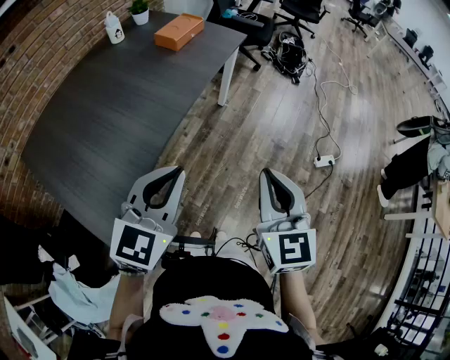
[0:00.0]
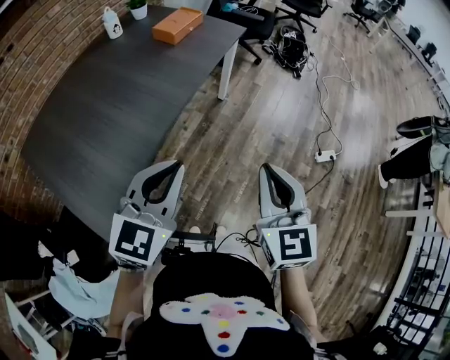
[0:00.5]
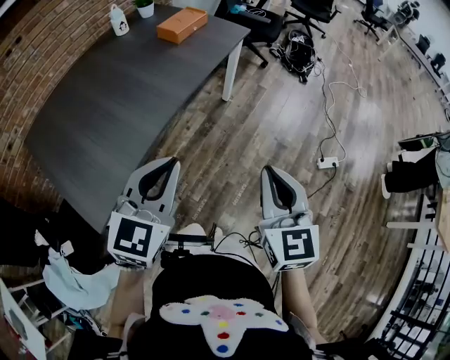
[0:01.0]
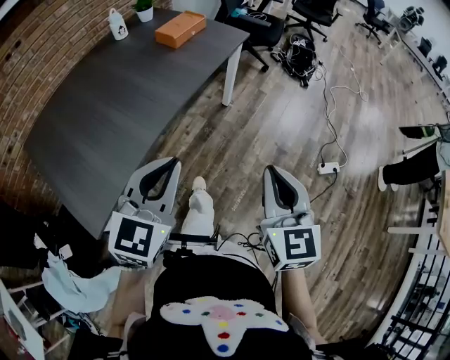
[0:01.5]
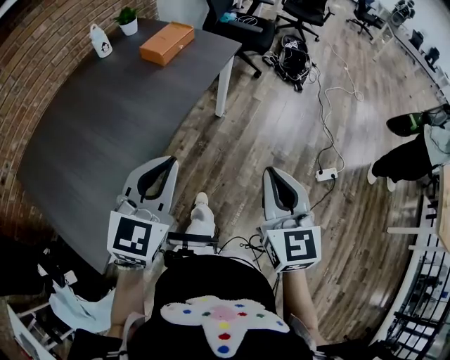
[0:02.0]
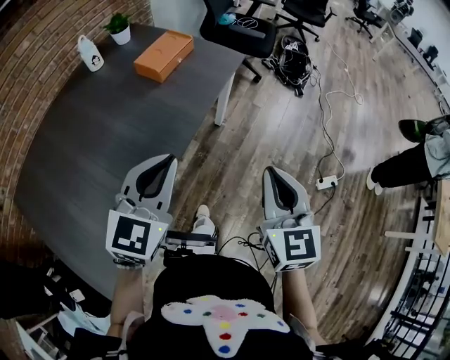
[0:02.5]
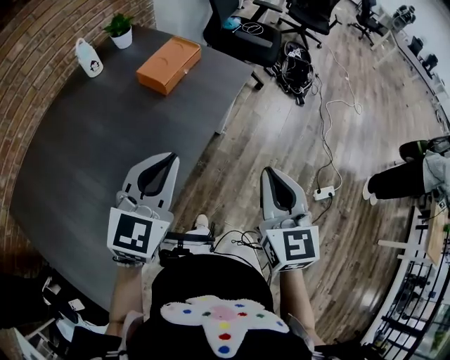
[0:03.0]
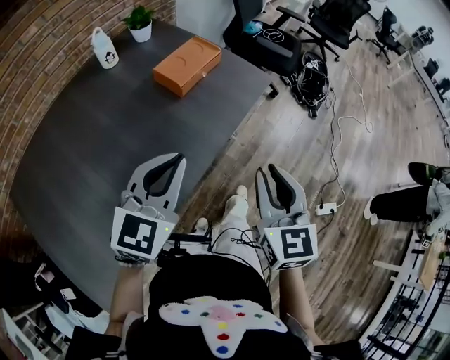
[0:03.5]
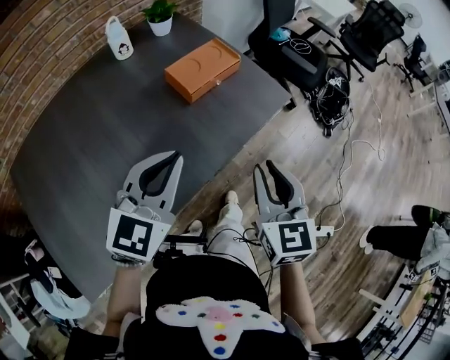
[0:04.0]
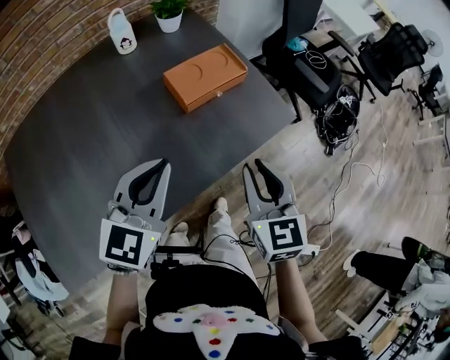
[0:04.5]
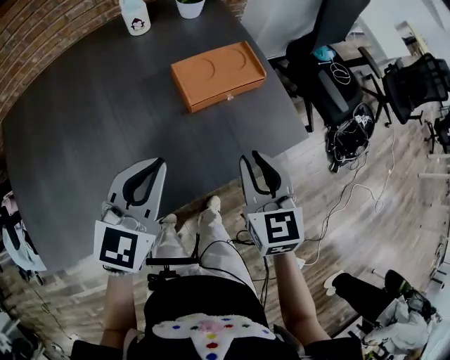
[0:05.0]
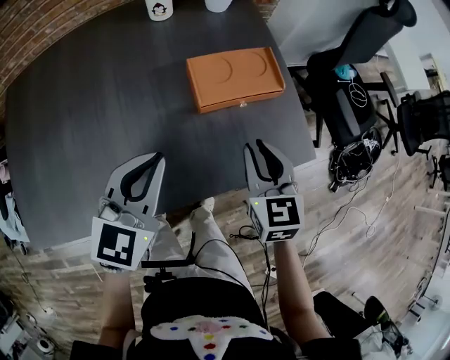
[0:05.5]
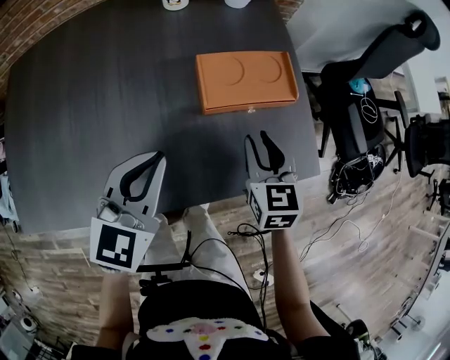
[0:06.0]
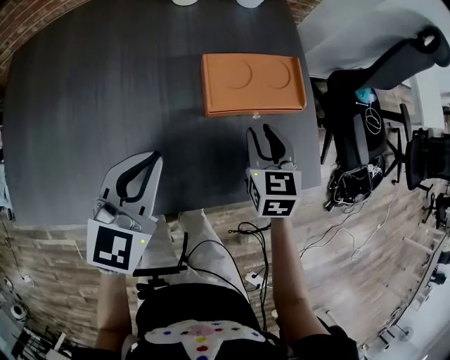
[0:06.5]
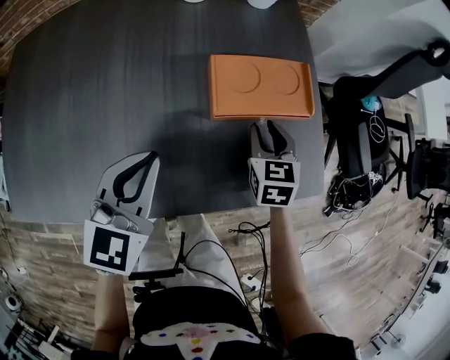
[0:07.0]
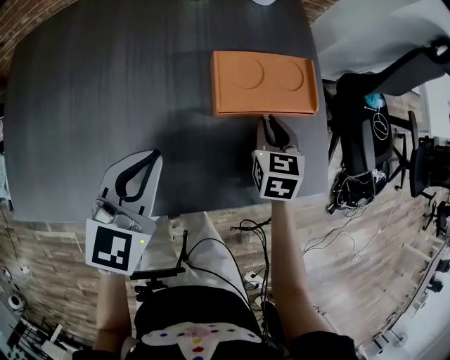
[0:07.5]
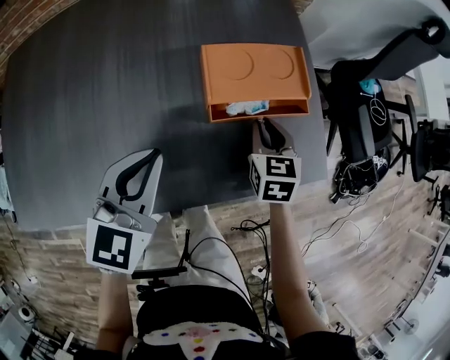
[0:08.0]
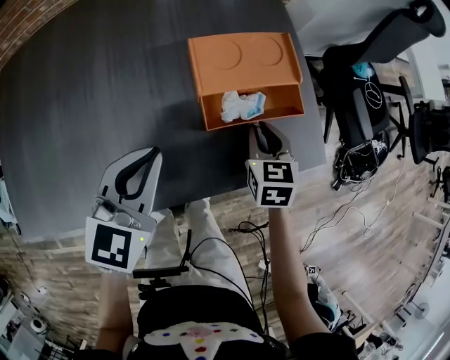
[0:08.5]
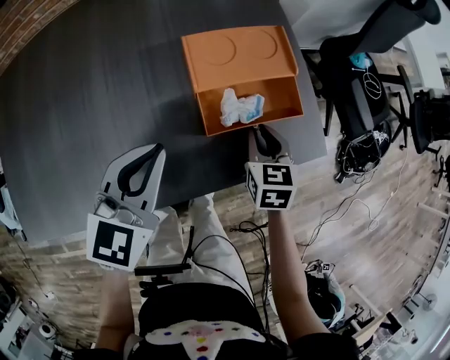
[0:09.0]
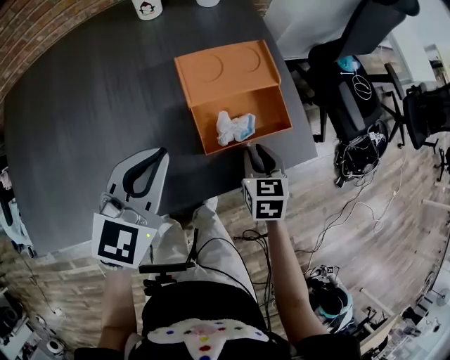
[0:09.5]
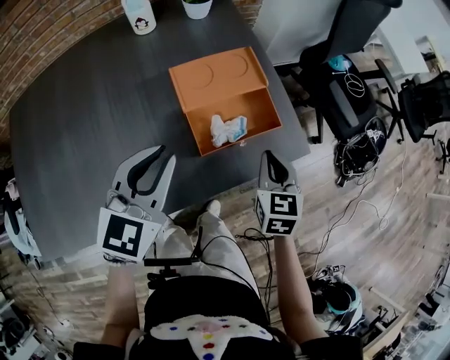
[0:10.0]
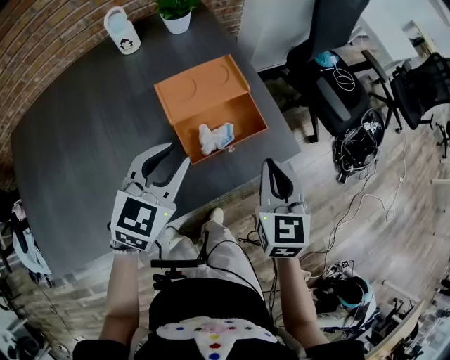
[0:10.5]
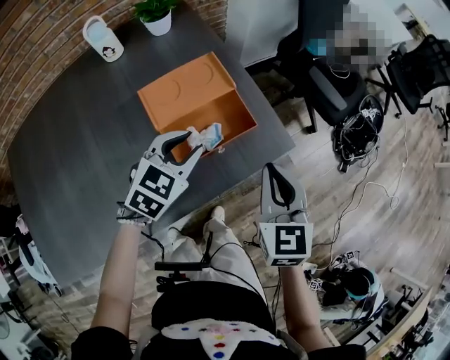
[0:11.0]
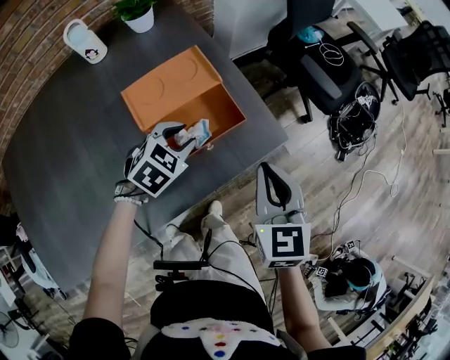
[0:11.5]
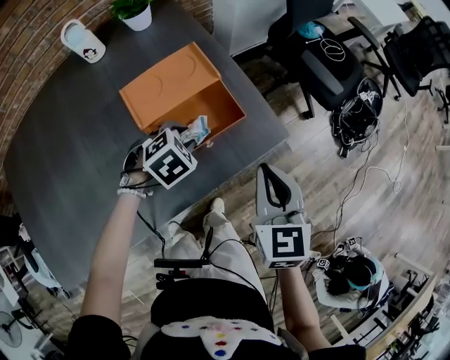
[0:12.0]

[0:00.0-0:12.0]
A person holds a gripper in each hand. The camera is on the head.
0:00.0 to 0:02.0: The right gripper goes some 15 cm forward and to the right. Meanwhile the left gripper travels forward by about 15 cm.
0:02.0 to 0:04.0: Both grippers move forward, approximately 35 cm.
0:04.0 to 0:06.0: The right gripper changes place by about 35 cm, and changes its angle by roughly 30 degrees, while the left gripper changes place by approximately 20 cm, and changes its angle by about 40 degrees.
0:06.0 to 0:08.0: The right gripper heads downward, covering roughly 10 cm.
0:08.0 to 0:10.0: The right gripper heads backward, to the right and upward, covering approximately 15 cm; the left gripper goes roughly 10 cm to the right and upward.
0:10.0 to 0:12.0: The right gripper is displaced to the right and upward by roughly 10 cm. The left gripper is displaced downward, forward and to the right by approximately 25 cm, tips its fingers downward by some 50 degrees, and opens.

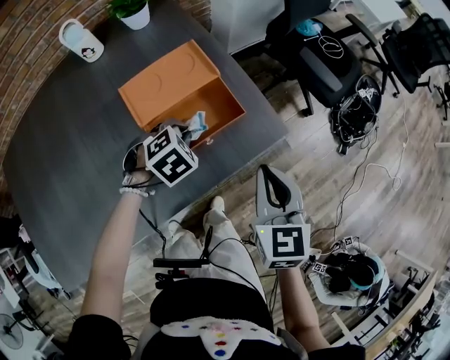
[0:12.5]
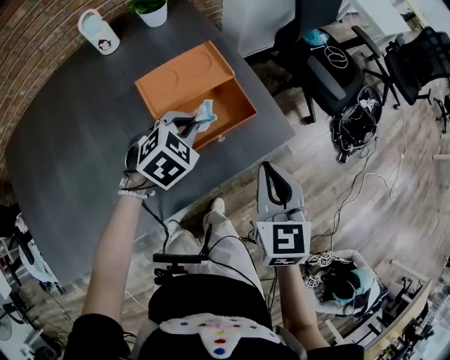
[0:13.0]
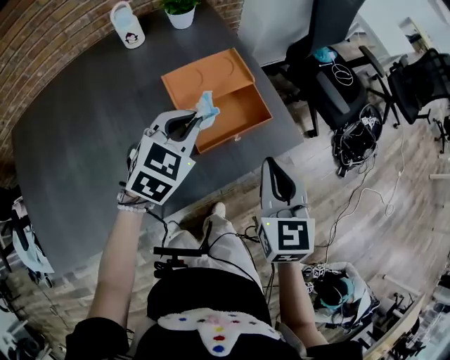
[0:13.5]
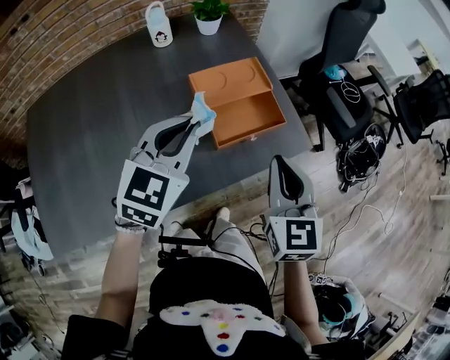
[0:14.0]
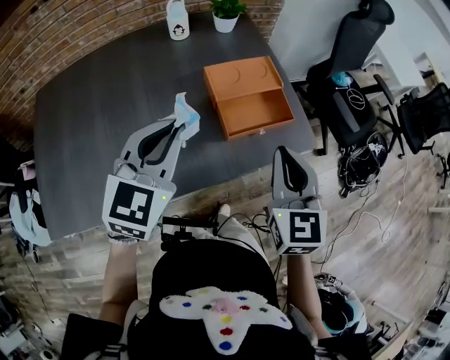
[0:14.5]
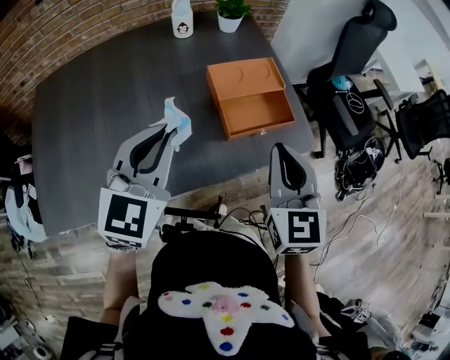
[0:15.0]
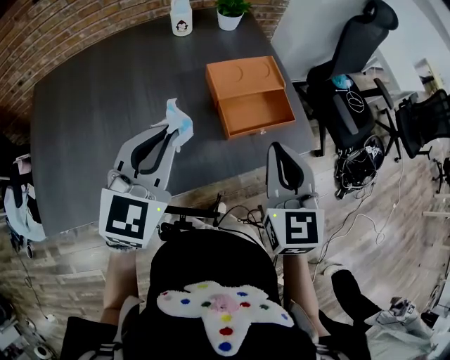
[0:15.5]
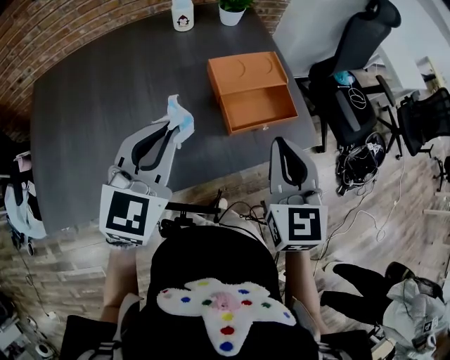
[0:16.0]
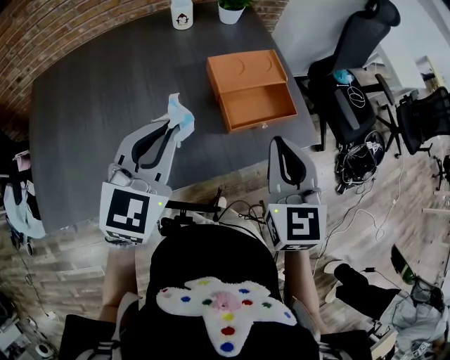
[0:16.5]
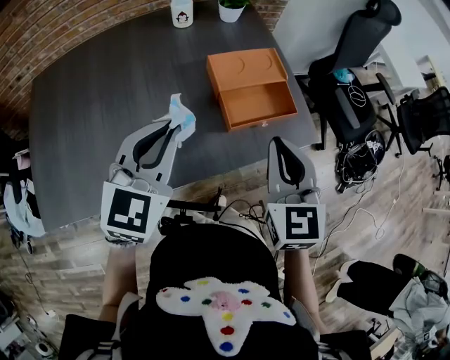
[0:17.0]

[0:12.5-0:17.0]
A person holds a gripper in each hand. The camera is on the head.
0:12.5 to 0:14.5: The left gripper goes some 35 cm upward, backward and to the left, and angles its fingers upward, by about 50 degrees; the right gripper travels upward, to the left and backward by some 20 cm, and changes its angle by approximately 20 degrees.
0:14.5 to 0:17.0: The grippers stay close to where they were, moving slightly.

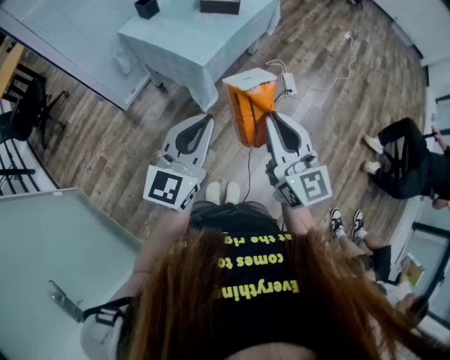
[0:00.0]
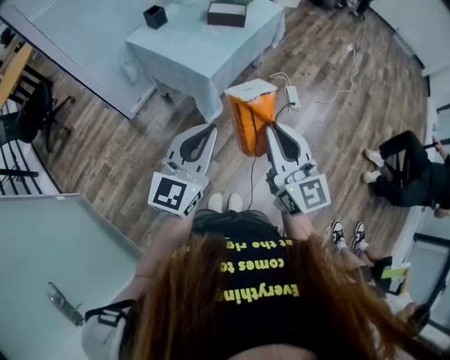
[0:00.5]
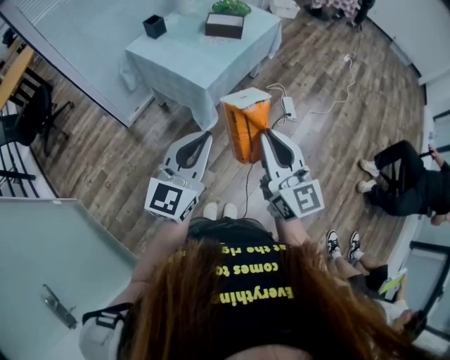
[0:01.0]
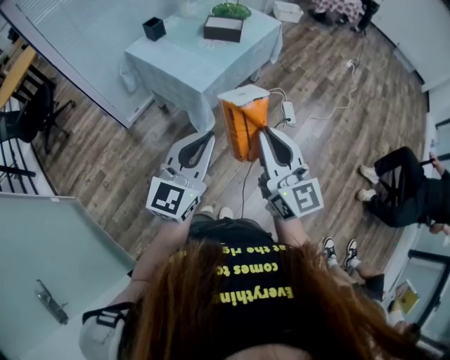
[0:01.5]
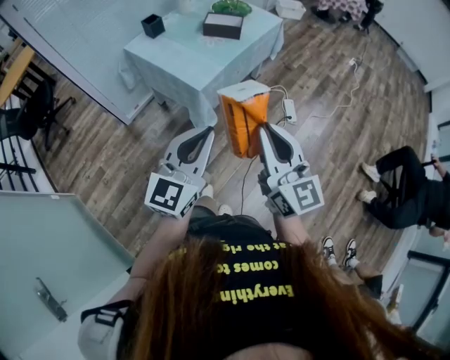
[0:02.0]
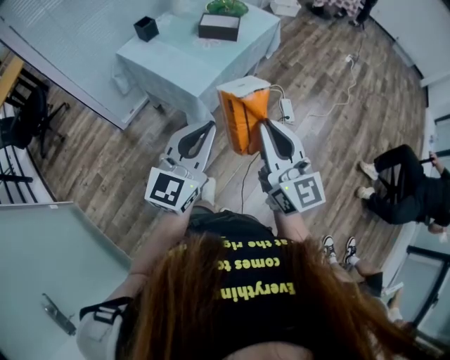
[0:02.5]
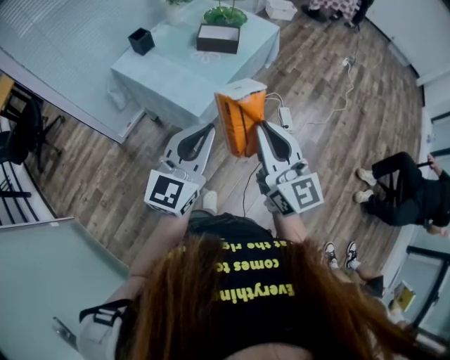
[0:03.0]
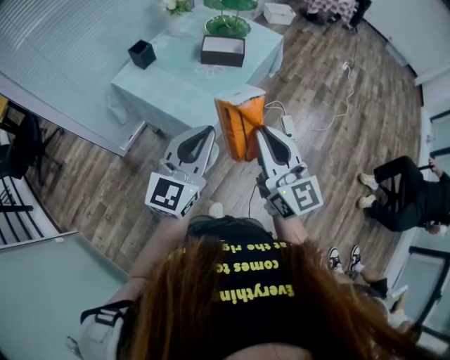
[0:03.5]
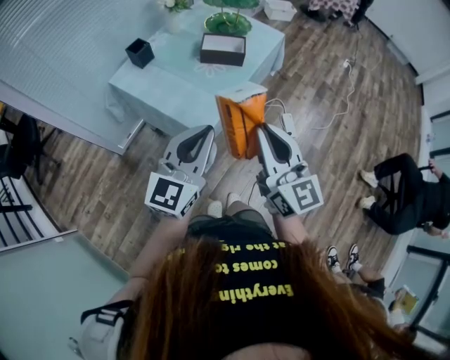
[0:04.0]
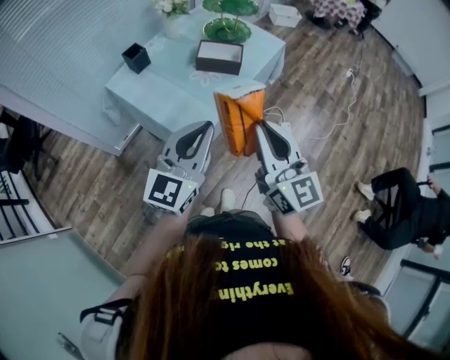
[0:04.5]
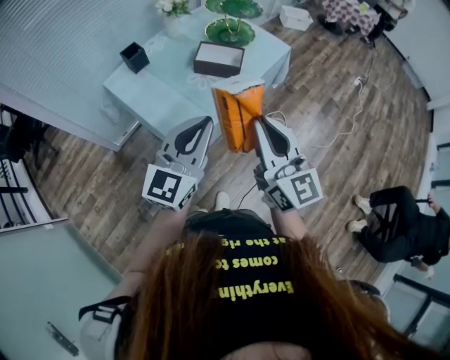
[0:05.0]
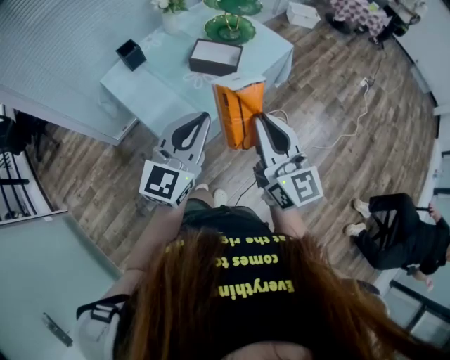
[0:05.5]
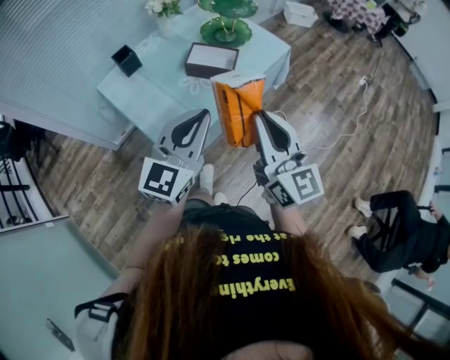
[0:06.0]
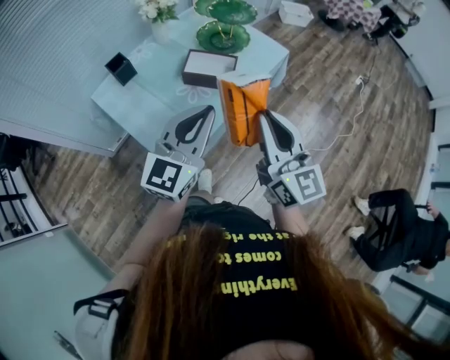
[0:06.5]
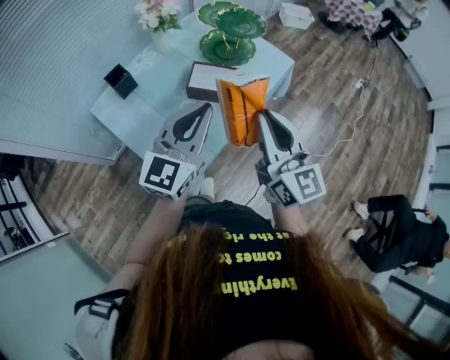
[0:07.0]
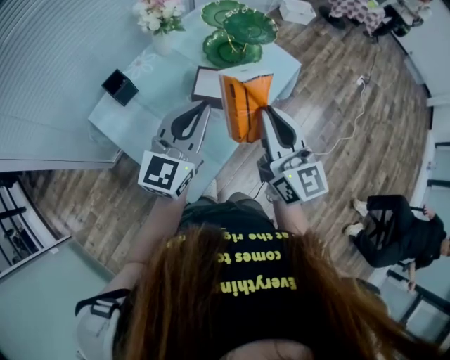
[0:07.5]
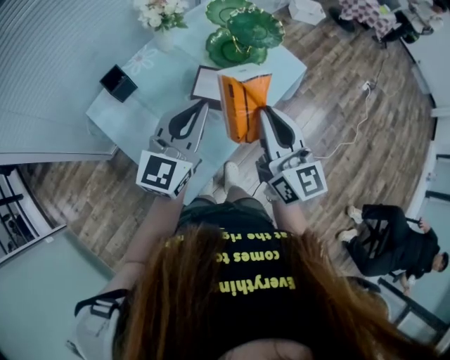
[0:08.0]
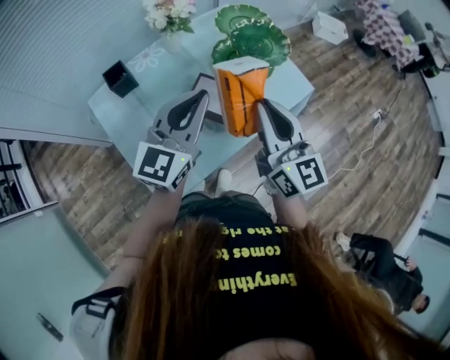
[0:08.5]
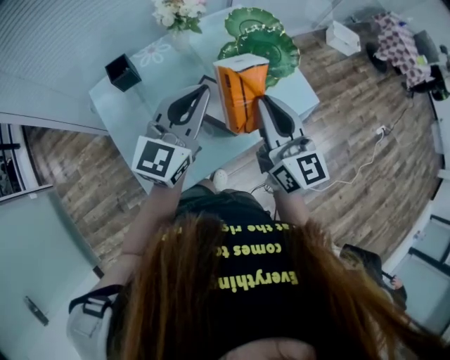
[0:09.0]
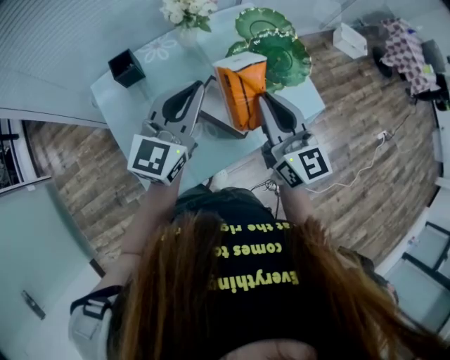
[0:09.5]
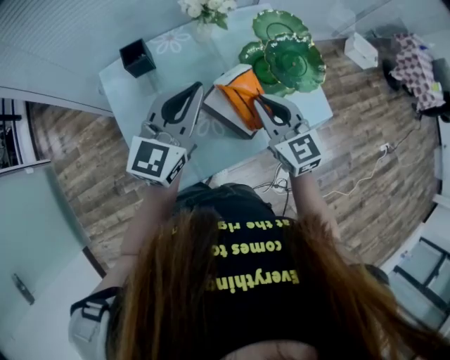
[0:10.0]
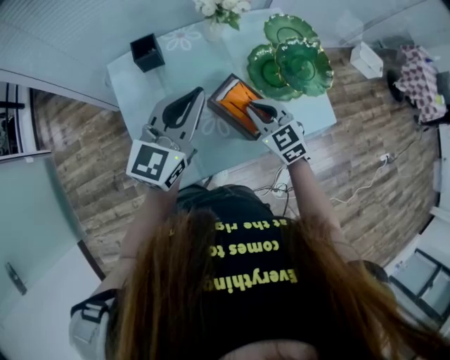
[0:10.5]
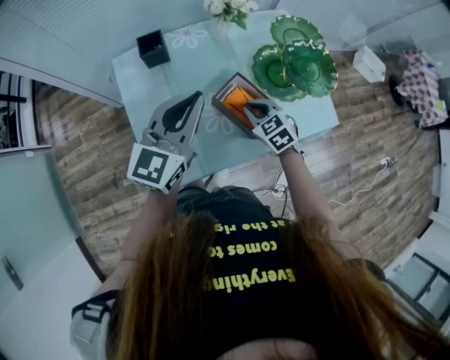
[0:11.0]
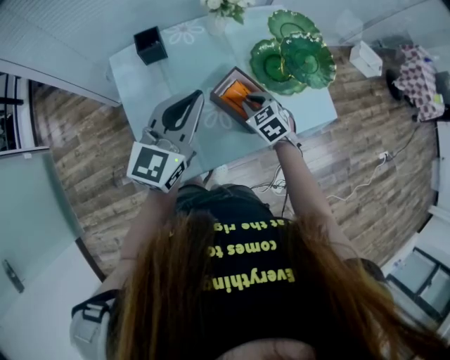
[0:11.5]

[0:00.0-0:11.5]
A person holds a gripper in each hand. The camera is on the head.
0:00.0 to 0:02.0: The right gripper moves roughly 5 cm. Meanwhile the left gripper changes place by approximately 5 cm.
0:02.0 to 0:04.0: Both grippers move forward, roughly 20 cm.
0:04.0 to 0:06.0: The grippers both shift forward and to the right by roughly 20 cm.
0:06.0 to 0:07.5: The grippers both shift forward by approximately 20 cm.
0:07.5 to 0:09.5: The grippers both shift forward by some 15 cm. The left gripper changes its angle by some 20 degrees. The right gripper rotates about 30 degrees.
0:09.5 to 0:11.5: The right gripper heads downward, covering some 25 cm, and angles its fingers downward, by roughly 50 degrees. Meanwhile the left gripper is displaced to the left by approximately 5 cm.
